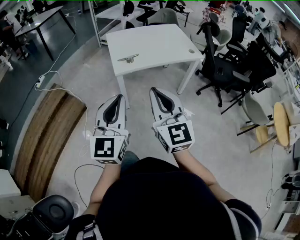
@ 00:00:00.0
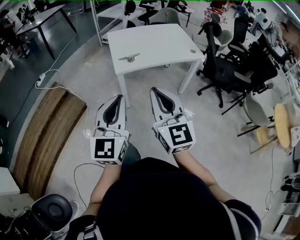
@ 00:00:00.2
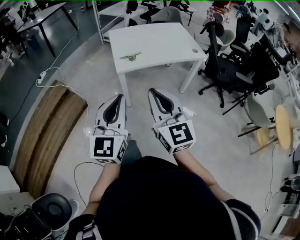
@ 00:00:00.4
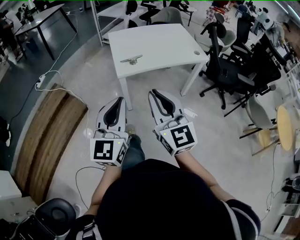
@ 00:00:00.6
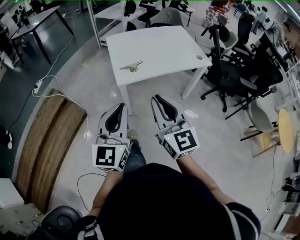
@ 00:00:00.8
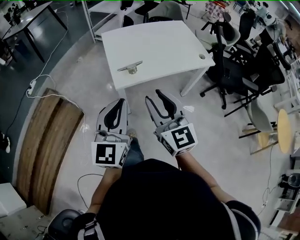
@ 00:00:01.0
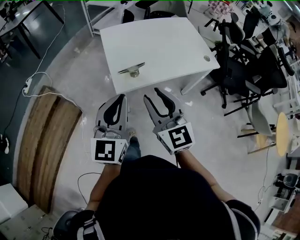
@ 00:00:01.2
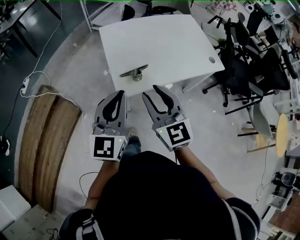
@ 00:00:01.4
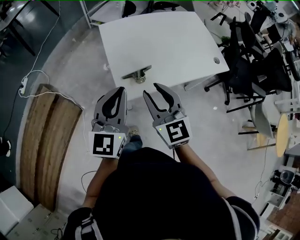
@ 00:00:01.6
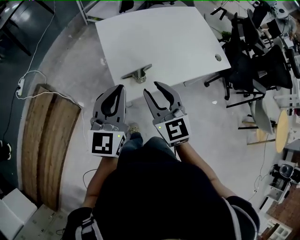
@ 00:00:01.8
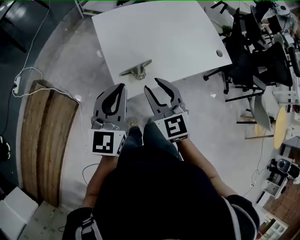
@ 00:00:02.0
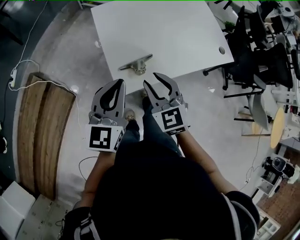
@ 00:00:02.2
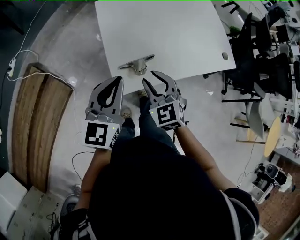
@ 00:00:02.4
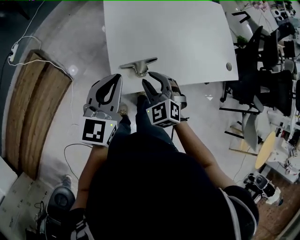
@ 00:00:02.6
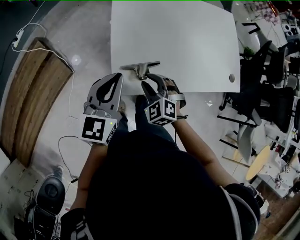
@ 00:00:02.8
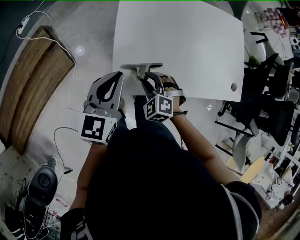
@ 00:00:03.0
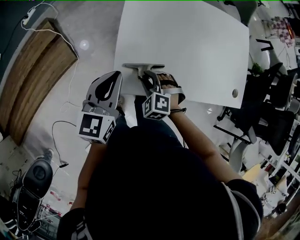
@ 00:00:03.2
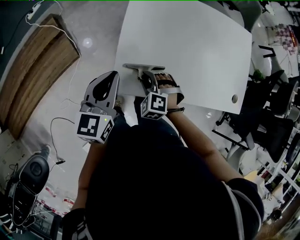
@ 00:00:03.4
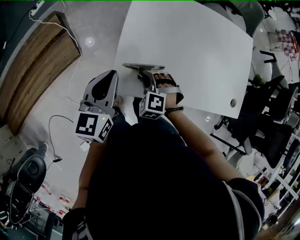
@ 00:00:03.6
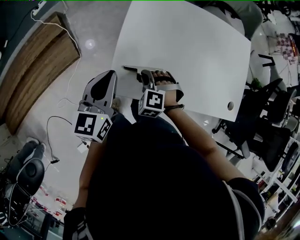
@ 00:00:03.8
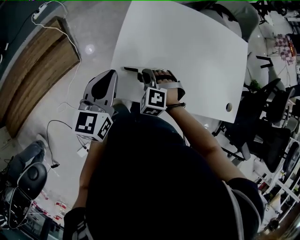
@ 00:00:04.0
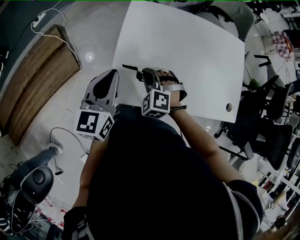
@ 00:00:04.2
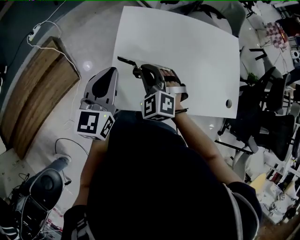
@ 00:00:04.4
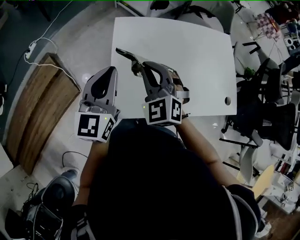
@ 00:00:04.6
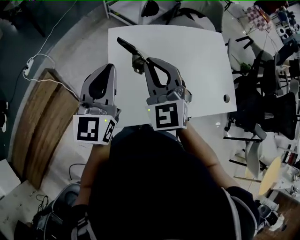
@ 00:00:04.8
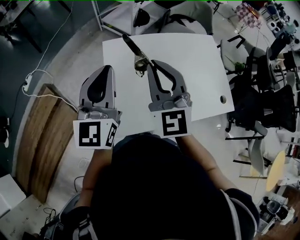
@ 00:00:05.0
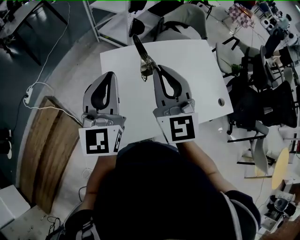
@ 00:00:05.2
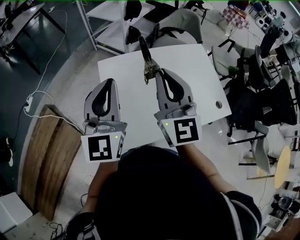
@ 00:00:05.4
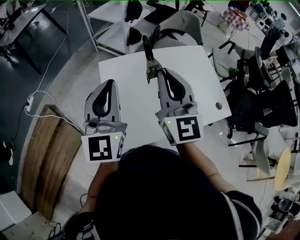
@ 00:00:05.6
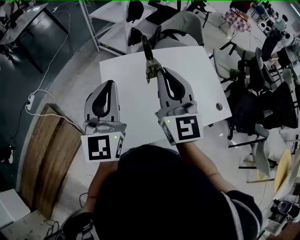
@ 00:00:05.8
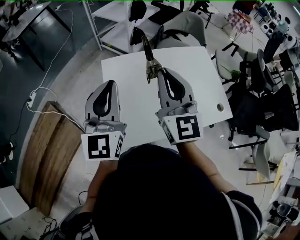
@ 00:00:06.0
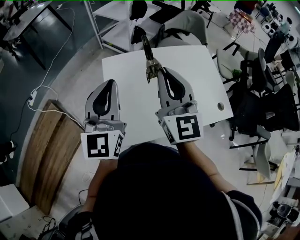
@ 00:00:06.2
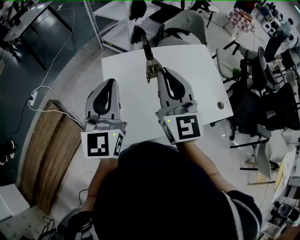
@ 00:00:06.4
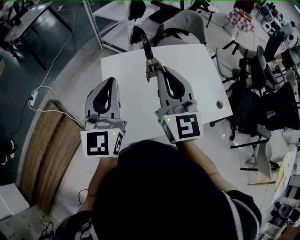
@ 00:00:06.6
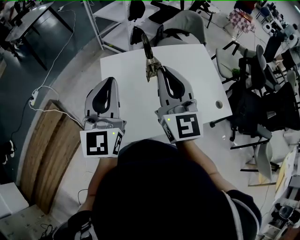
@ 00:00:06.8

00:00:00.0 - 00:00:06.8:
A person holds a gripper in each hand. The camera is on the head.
00:00:00.0 - 00:00:01.4: The two grippers go roughly 35 cm forward. The right gripper opens.
00:00:01.4 - 00:00:02.8: The right gripper heads downward and forward, covering some 25 cm, and tips its fingers downward by roughly 40 degrees. The left gripper goes approximately 20 cm forward and downward.
00:00:02.8 - 00:00:04.0: The left gripper changes its angle by some 20 degrees, while the right gripper shifts approximately 5 cm forward, changes its angle by some 30 degrees, and closes its fingers.
00:00:04.0 - 00:00:05.4: The left gripper moves upward and forward, about 25 cm, and turns by some 30 degrees. The right gripper shifts some 40 cm upward, and tips its fingers upward by approximately 60 degrees.
00:00:05.4 - 00:00:06.8: The grippers stay close to where they were, moving slightly.

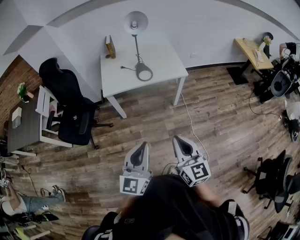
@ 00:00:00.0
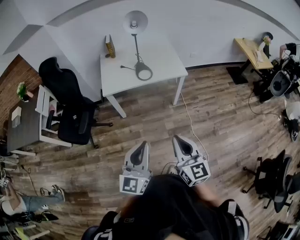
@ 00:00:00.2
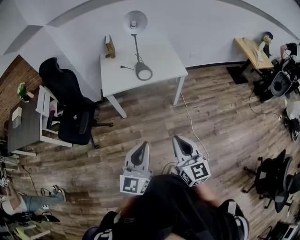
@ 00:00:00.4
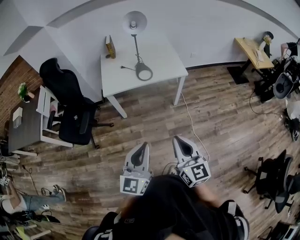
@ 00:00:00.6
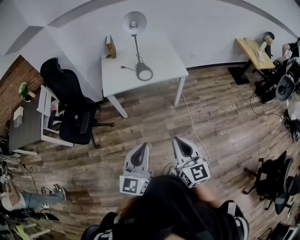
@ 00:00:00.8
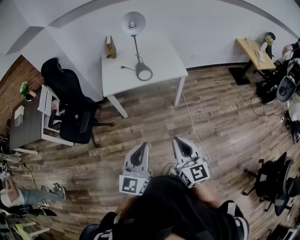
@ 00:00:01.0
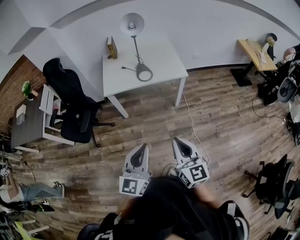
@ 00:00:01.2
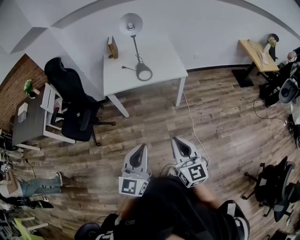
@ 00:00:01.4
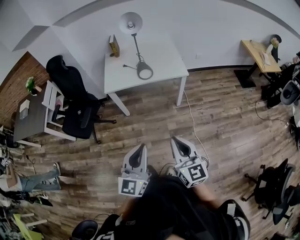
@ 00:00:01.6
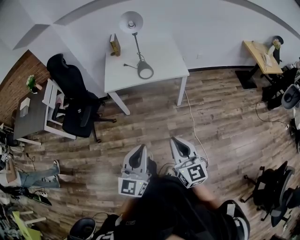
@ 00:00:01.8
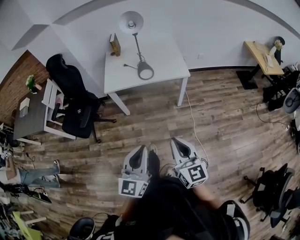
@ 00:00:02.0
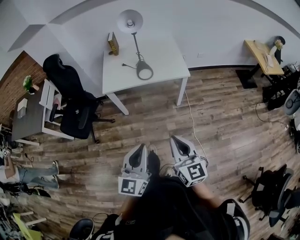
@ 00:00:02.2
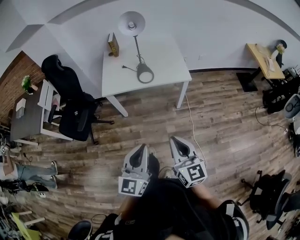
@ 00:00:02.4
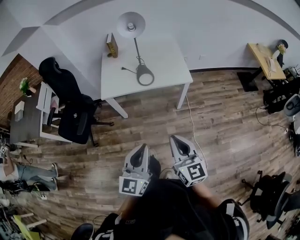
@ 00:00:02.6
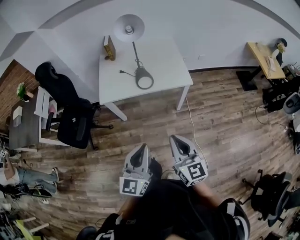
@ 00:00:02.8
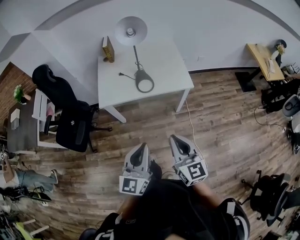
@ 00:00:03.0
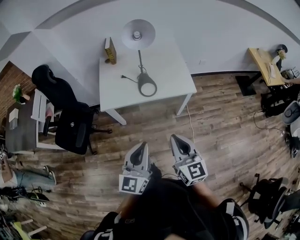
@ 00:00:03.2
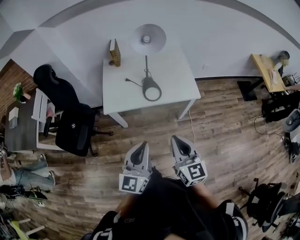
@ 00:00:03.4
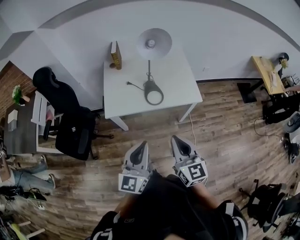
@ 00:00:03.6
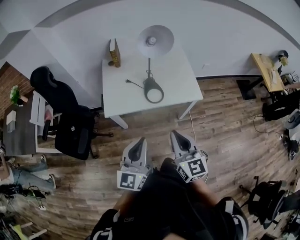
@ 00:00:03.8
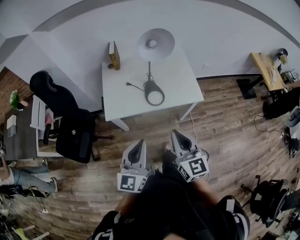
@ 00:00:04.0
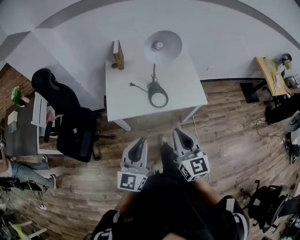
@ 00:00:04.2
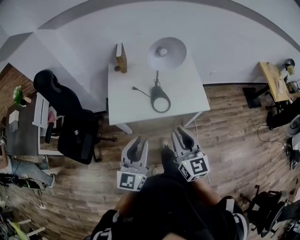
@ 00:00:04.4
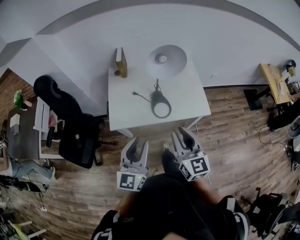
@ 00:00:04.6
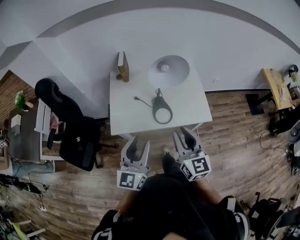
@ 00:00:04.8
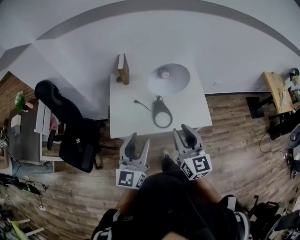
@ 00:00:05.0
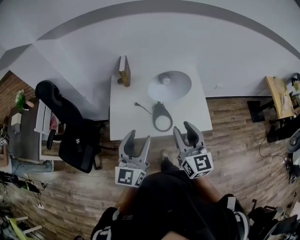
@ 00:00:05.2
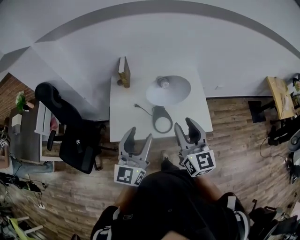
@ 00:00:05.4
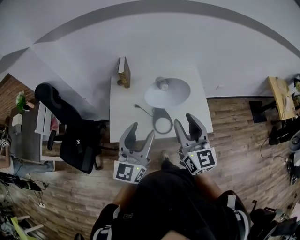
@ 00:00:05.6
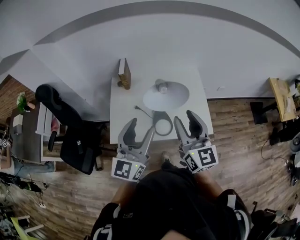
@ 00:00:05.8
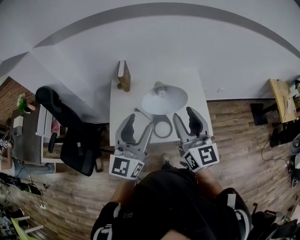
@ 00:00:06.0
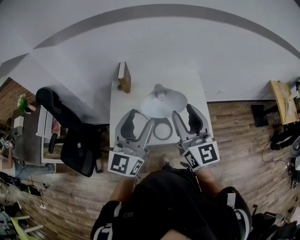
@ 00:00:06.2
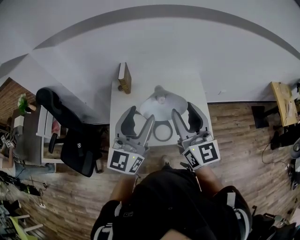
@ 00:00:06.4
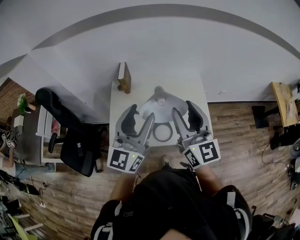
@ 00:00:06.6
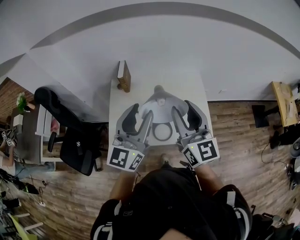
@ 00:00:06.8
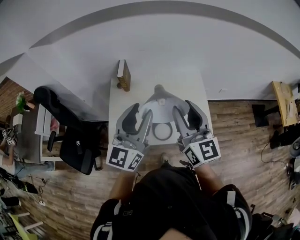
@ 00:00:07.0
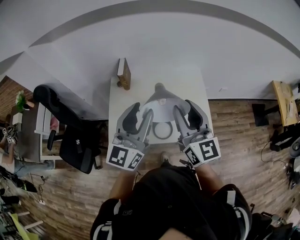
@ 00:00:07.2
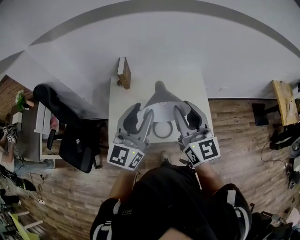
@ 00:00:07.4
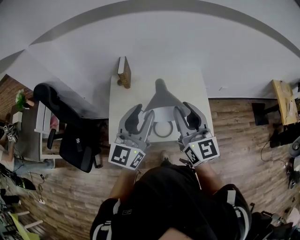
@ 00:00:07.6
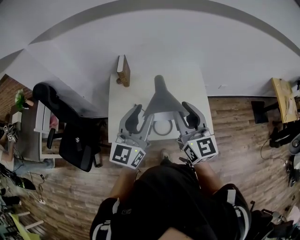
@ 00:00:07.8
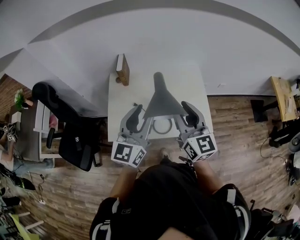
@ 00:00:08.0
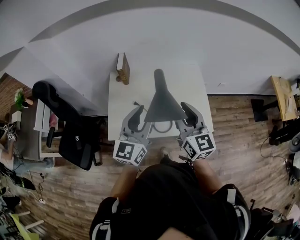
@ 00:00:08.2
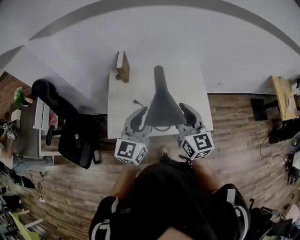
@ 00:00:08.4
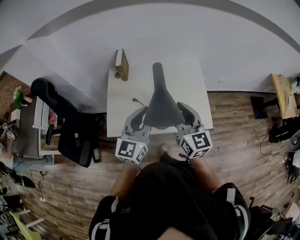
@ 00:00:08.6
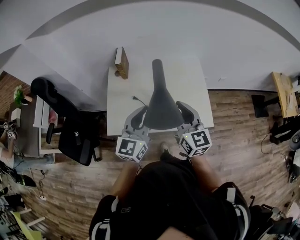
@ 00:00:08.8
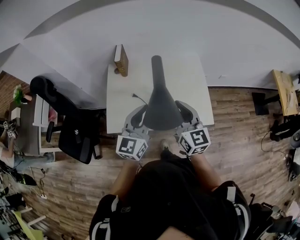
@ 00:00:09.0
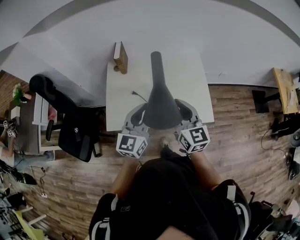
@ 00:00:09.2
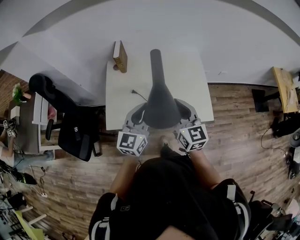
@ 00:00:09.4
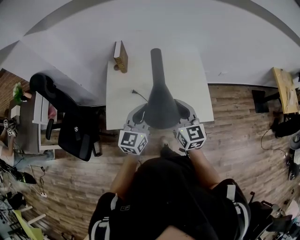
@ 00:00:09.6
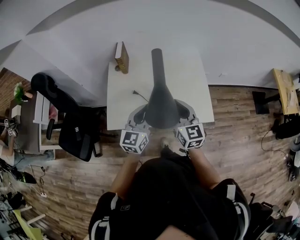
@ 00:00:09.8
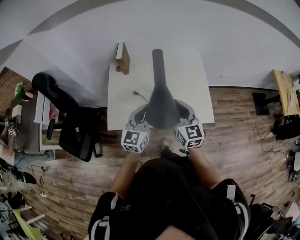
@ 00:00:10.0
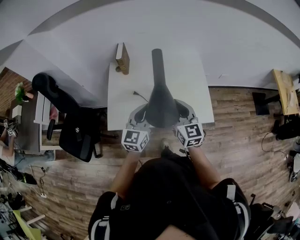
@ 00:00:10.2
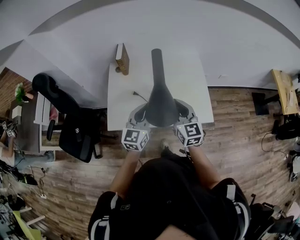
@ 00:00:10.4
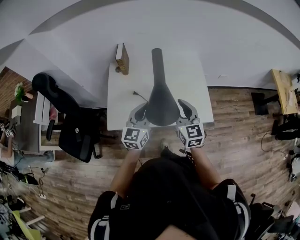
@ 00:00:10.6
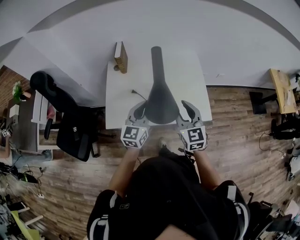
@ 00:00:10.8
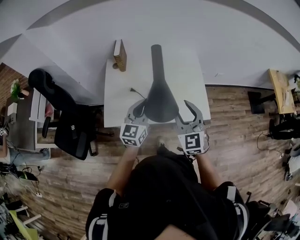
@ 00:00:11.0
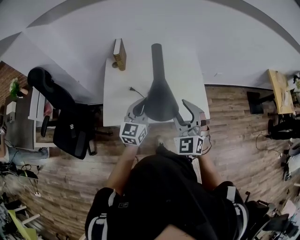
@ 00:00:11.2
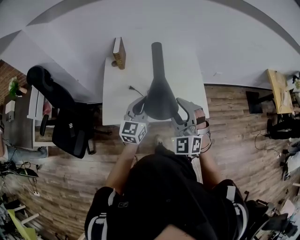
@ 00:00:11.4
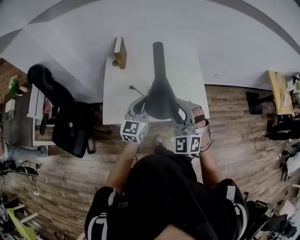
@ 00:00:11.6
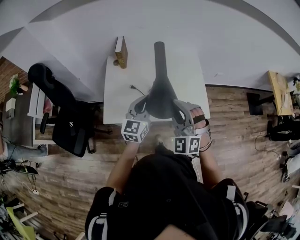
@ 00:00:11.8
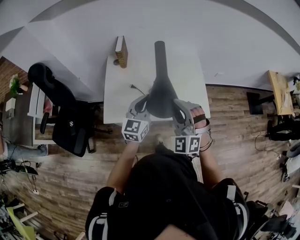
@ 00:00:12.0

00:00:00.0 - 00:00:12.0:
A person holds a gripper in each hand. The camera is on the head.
00:00:00.0 - 00:00:01.6: Both grippers move to the right, approximately 5 cm.
00:00:01.6 - 00:00:03.0: Both grippers travel together forward, roughly 20 cm.
00:00:03.0 - 00:00:04.4: Both grippers move forward and to the left, about 20 cm.
00:00:04.4 - 00:00:06.0: Both grippers travel together forward and upward, approximately 25 cm. The left gripper opens its fingers. Meanwhile the right gripper opens.
00:00:06.0 - 00:00:07.6: The left gripper travels forward by some 5 cm.
00:00:07.6 - 00:00:09.0: The grippers both shift downward by some 10 cm. The left gripper closes its fingers.
00:00:09.0 - 00:00:10.4: The left gripper goes roughly 5 cm downward.
00:00:10.4 - 00:00:12.0: The right gripper heads backward, covering about 5 cm, rolls counterclockwise, seen from behind, by about 60 degrees, and opens, then closes once more.

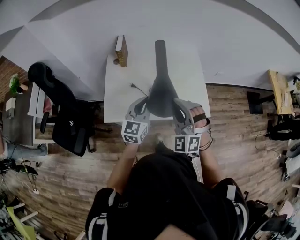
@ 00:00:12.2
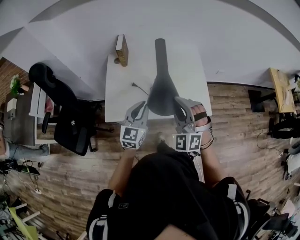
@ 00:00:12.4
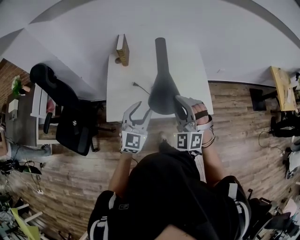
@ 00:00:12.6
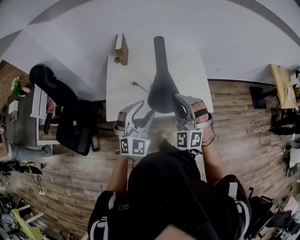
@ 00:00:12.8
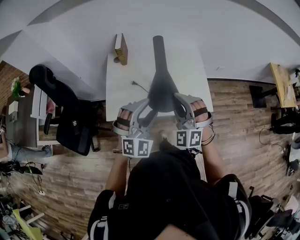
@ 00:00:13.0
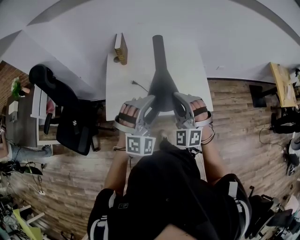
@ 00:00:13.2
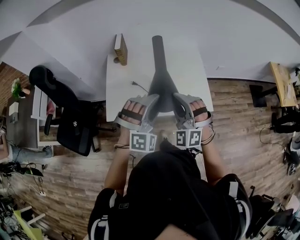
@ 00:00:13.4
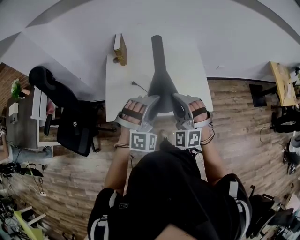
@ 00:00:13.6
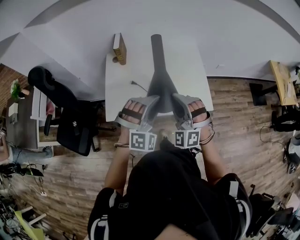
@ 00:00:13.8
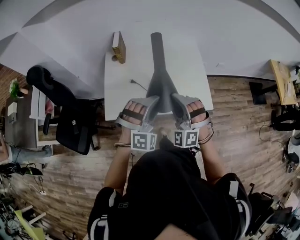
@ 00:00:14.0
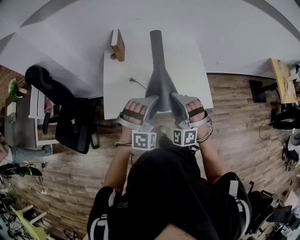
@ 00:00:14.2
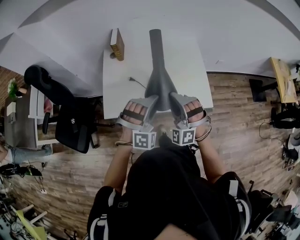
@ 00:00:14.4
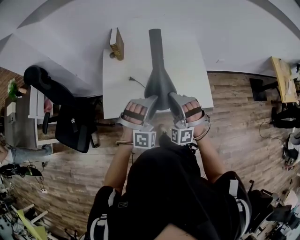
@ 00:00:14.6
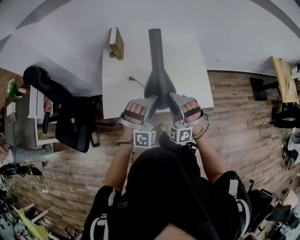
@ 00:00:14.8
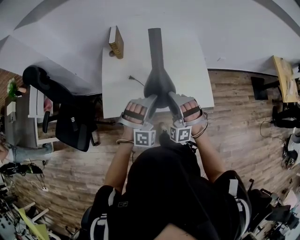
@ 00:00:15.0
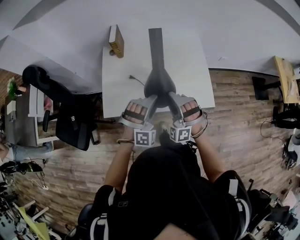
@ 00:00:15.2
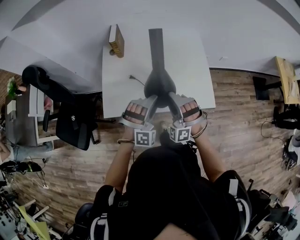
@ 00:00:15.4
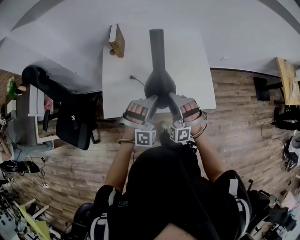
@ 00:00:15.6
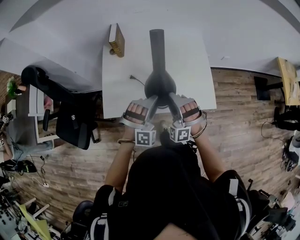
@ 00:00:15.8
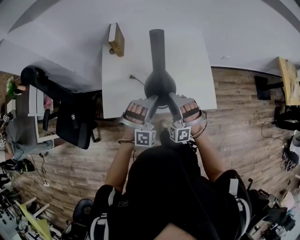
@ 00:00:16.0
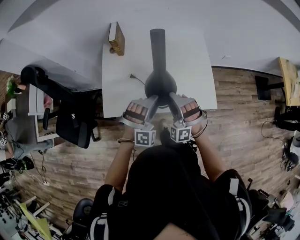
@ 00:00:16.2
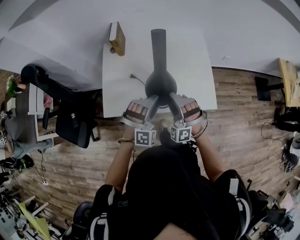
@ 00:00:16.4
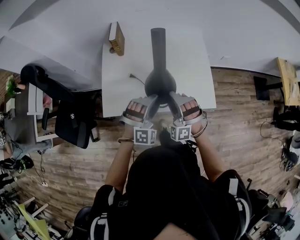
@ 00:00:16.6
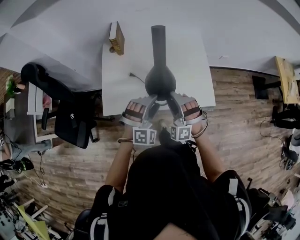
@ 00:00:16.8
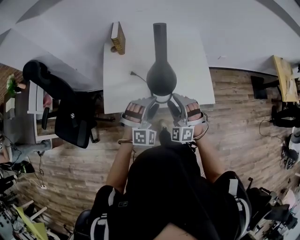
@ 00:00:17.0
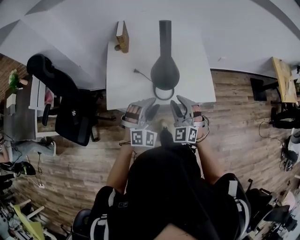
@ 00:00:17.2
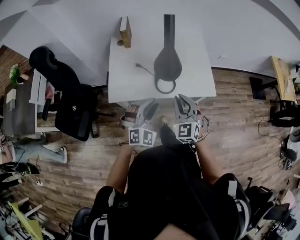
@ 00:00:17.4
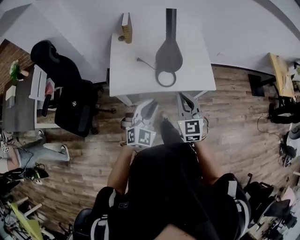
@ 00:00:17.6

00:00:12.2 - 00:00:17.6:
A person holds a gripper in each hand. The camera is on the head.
00:00:12.2 - 00:00:13.6: The left gripper is displaced to the right and backward by roughly 10 cm, rolls clockwise, seen from behind, by roughly 80 degrees, and opens its fingers.
00:00:13.6 - 00:00:15.0: The grippers both shift downward by about 10 cm. The right gripper opens its fingers.
00:00:15.0 - 00:00:16.2: The grippers move only a little.
00:00:16.2 - 00:00:17.6: The left gripper heads backward, covering about 20 cm, rotates around the line of its fingers by some 40 degrees, counterclockwise from behind, and closes its fingers. Meanwhile the right gripper shifts approximately 20 cm backward and upward, rotates around the line of its fingers by some 60 degrees, clockwise from behind, and closes its fingers.
